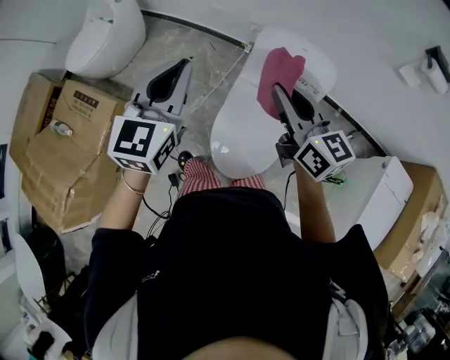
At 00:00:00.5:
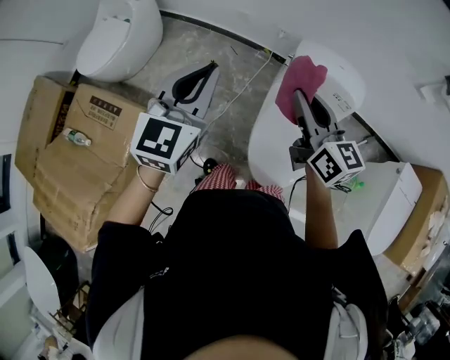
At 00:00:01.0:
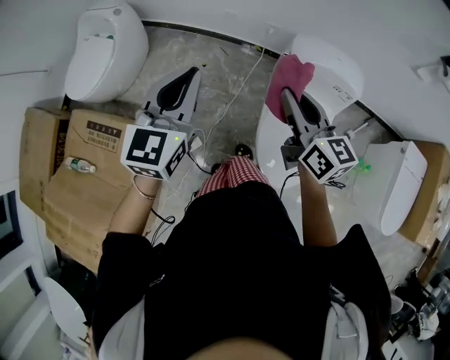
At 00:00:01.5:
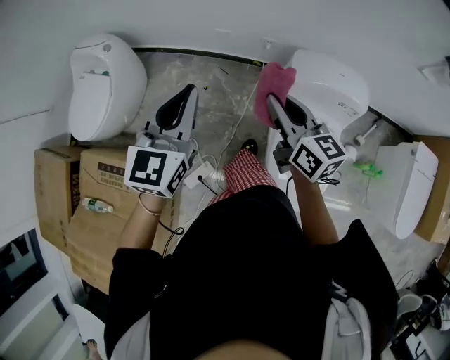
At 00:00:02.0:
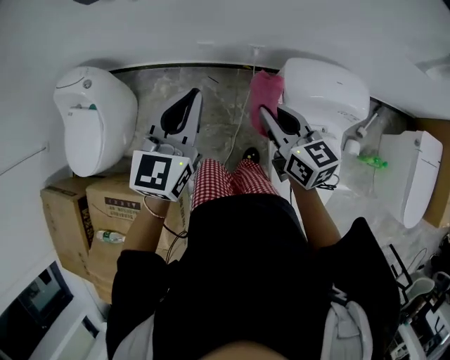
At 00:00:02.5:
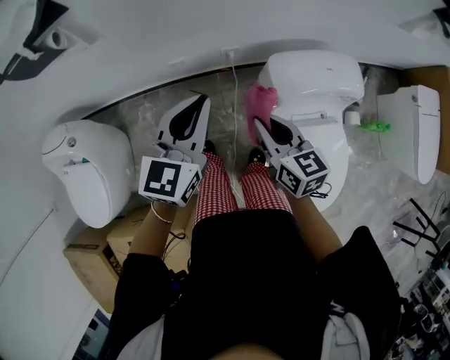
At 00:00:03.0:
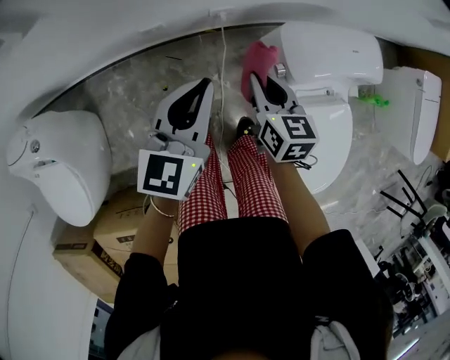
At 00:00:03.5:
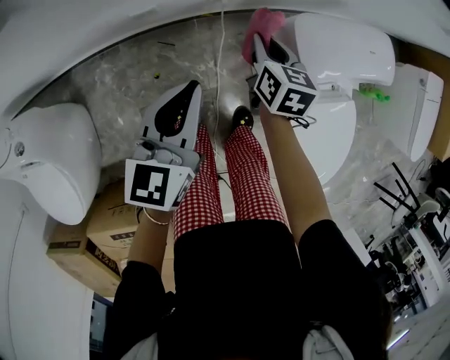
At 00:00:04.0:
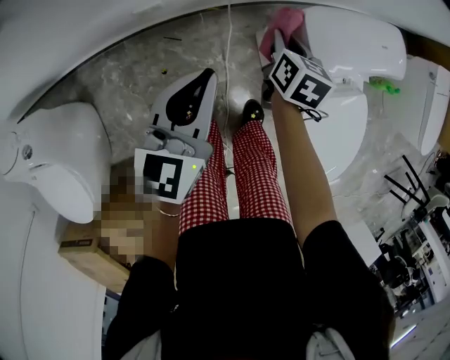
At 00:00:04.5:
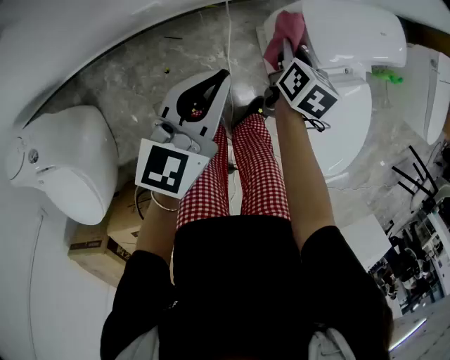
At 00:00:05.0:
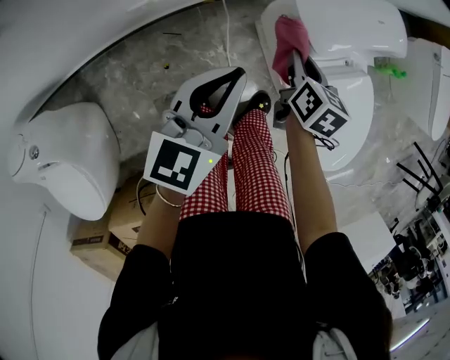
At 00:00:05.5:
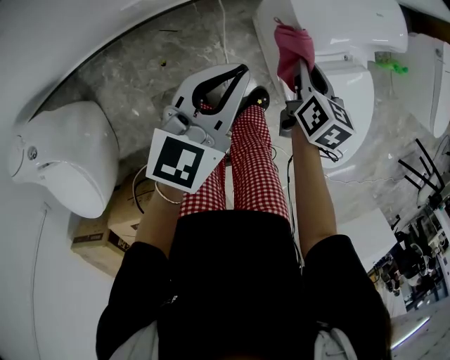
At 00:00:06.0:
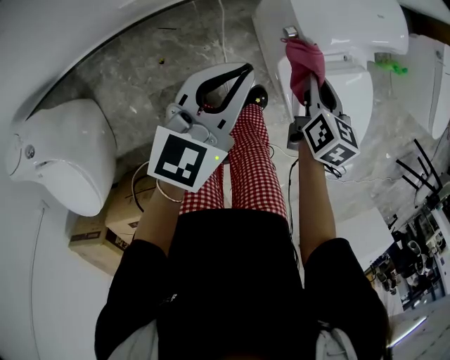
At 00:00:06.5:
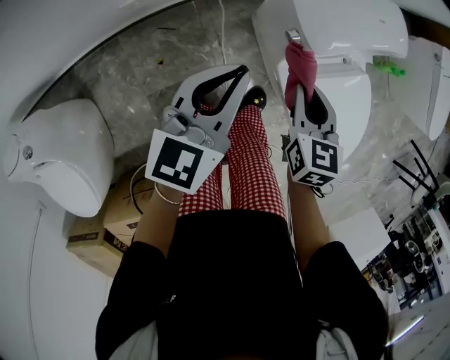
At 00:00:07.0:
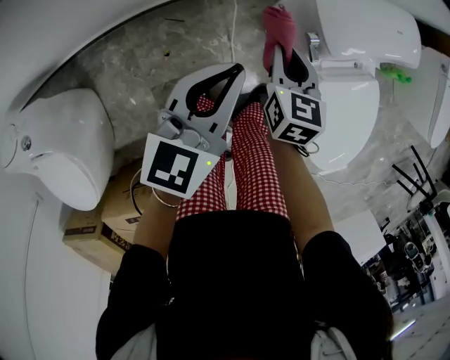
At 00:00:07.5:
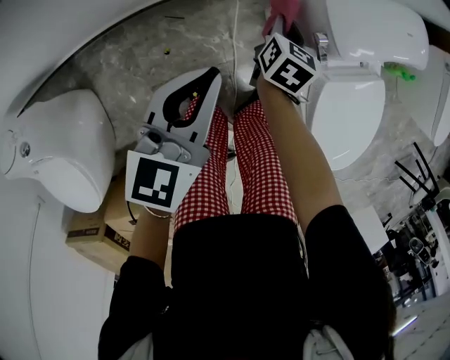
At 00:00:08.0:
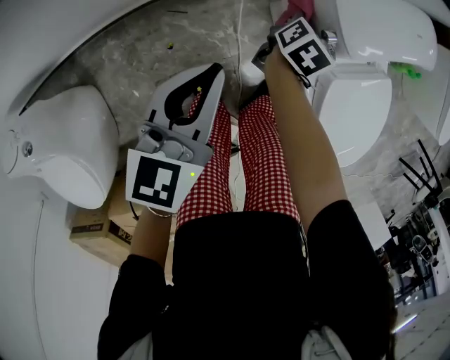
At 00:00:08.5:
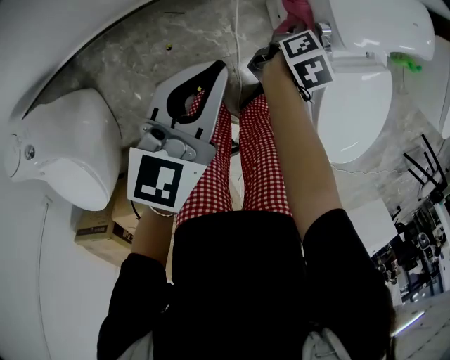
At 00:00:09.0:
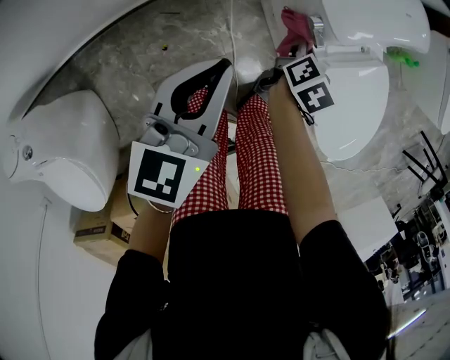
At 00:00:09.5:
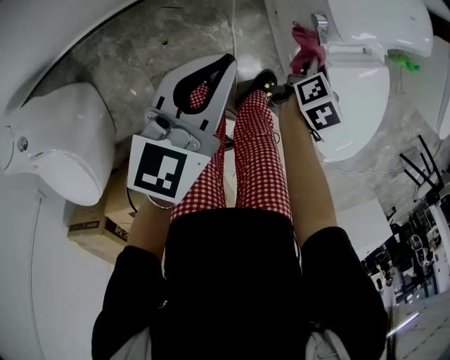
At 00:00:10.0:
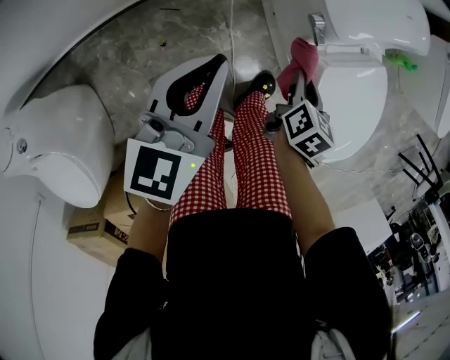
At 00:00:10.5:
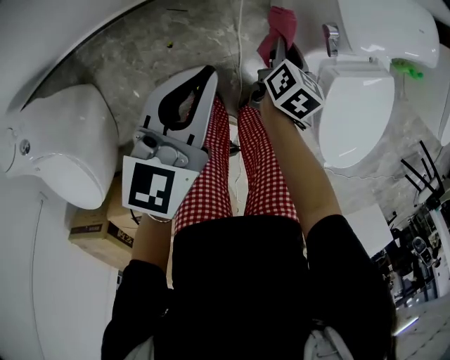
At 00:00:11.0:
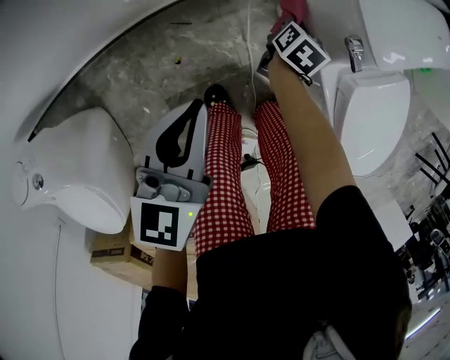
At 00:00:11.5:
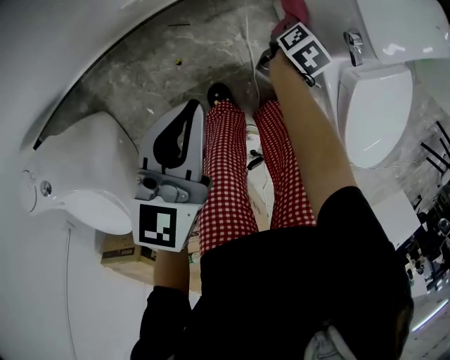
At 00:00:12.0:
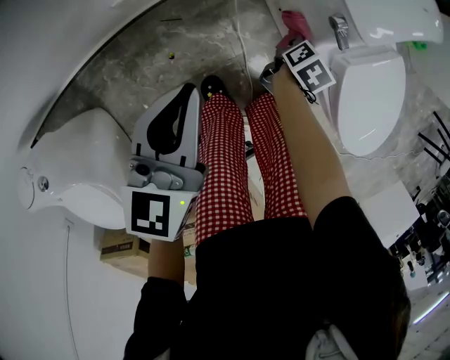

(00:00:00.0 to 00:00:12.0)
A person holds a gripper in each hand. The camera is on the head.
00:00:00.0 - 00:00:02.0: The right gripper shifts about 30 cm forward, to the left and downward, and swivels about 20 degrees. The left gripper goes roughly 30 cm forward, and changes its angle by approximately 20 degrees.
00:00:02.0 - 00:00:04.0: The two grippers go roughly 25 cm downward. The left gripper changes its angle by approximately 30 degrees. The right gripper changes its angle by approximately 60 degrees.
00:00:04.0 - 00:00:06.0: The right gripper is displaced to the right and backward by about 20 cm. Meanwhile the left gripper goes some 10 cm to the right.
00:00:06.0 - 00:00:08.0: The right gripper heads downward, to the left and forward, covering some 20 cm, and changes its angle by roughly 20 degrees, while the left gripper heads to the left, covering roughly 10 cm.
00:00:08.0 - 00:00:10.0: The right gripper goes approximately 20 cm backward and to the right.
00:00:10.0 - 00:00:12.0: The right gripper goes about 15 cm downward and forward, and turns by approximately 20 degrees, while the left gripper is displaced to the left by roughly 5 cm.

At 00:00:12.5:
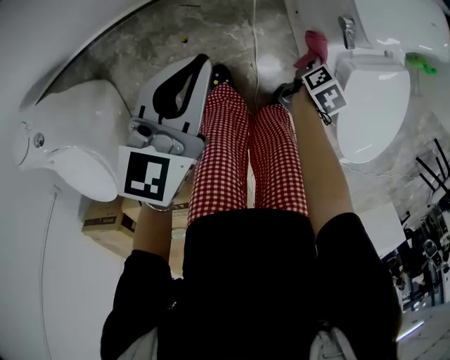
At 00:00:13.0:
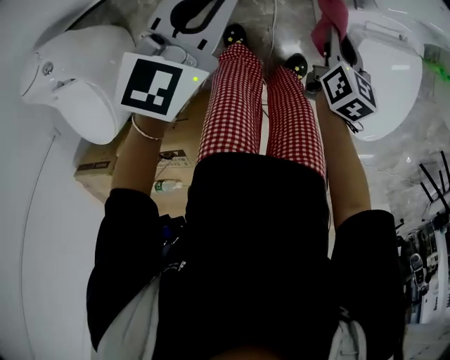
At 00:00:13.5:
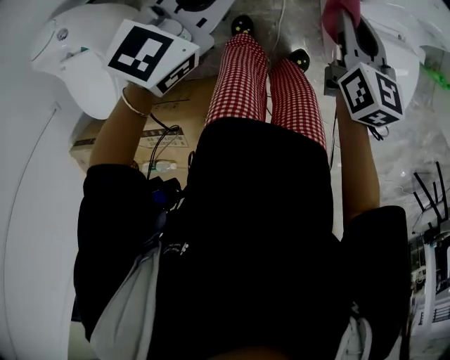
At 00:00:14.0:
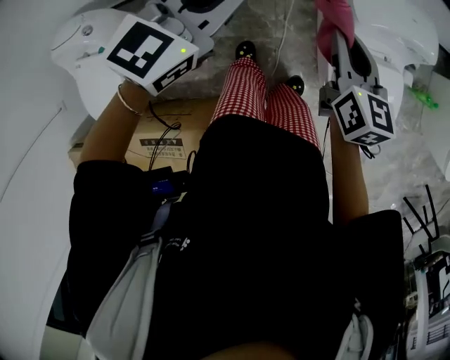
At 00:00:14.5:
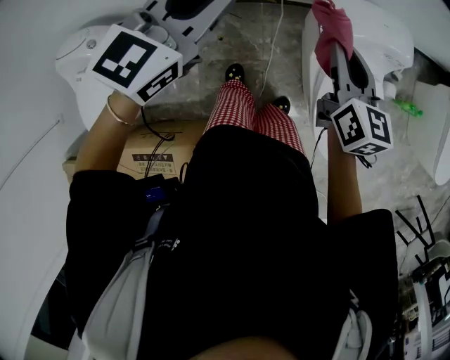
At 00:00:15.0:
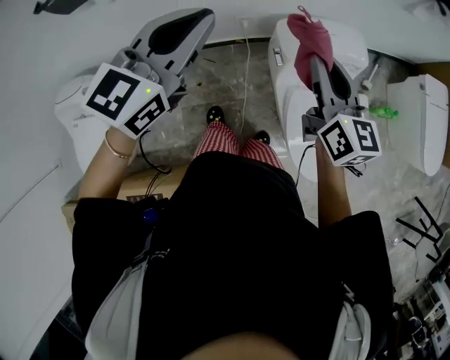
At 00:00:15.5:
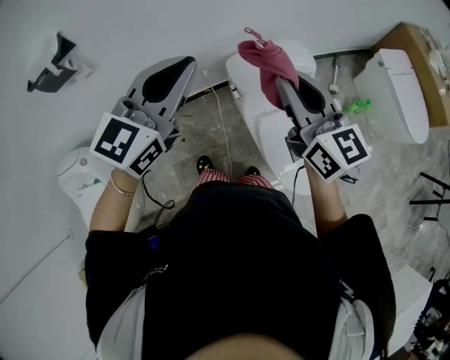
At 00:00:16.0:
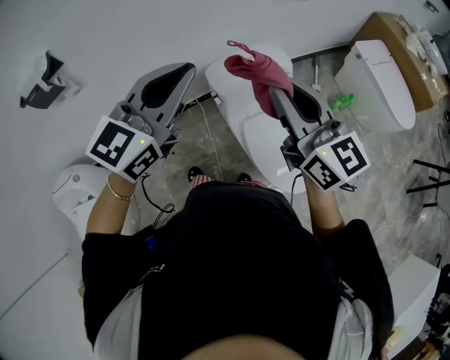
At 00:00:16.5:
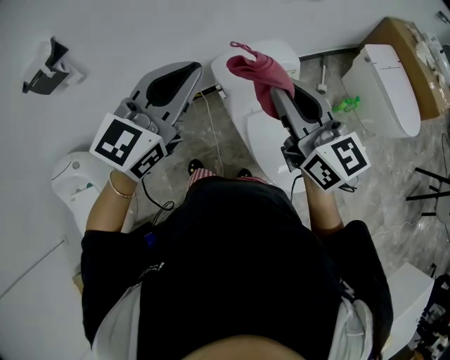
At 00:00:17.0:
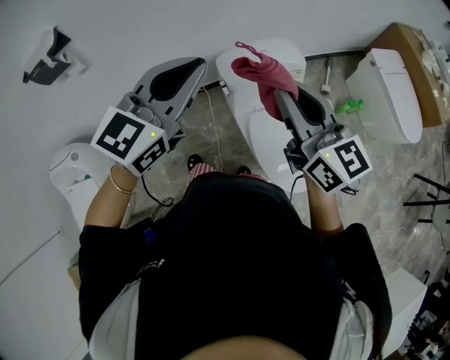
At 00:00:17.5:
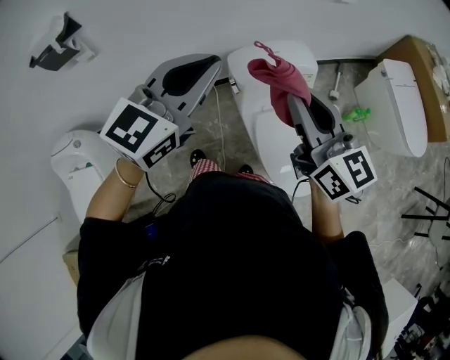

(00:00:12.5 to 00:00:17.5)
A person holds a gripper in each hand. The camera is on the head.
00:00:12.5 - 00:00:15.0: The right gripper heads upward, covering some 50 cm, and angles its fingers upward, by roughly 50 degrees. Meanwhile the left gripper shifts roughly 35 cm upward, and rotates about 20 degrees.
00:00:15.0 - 00:00:17.5: The left gripper moves to the right, some 15 cm; the right gripper moves to the right, upward and backward, roughly 15 cm.

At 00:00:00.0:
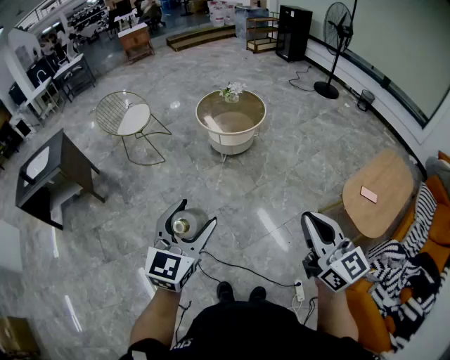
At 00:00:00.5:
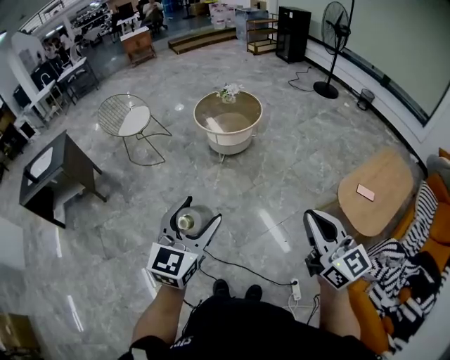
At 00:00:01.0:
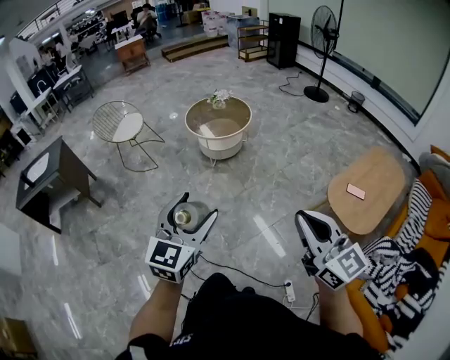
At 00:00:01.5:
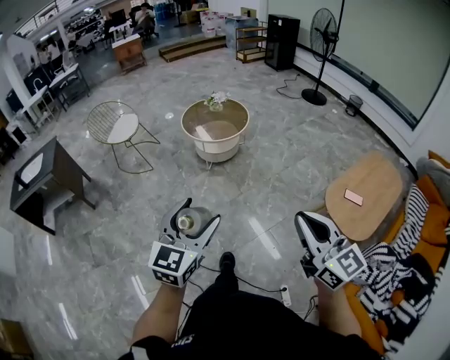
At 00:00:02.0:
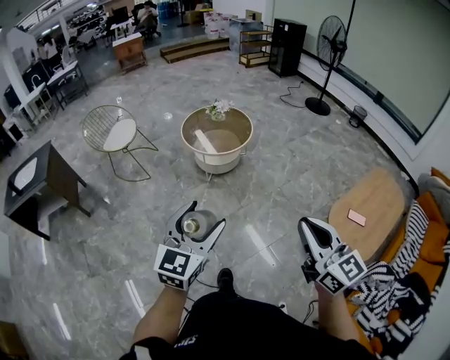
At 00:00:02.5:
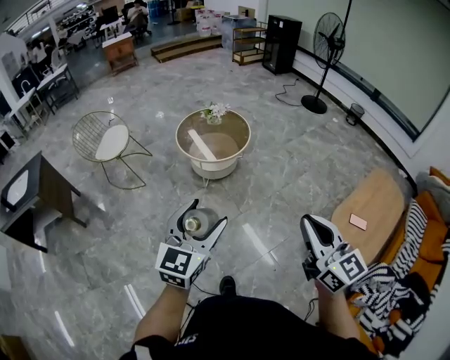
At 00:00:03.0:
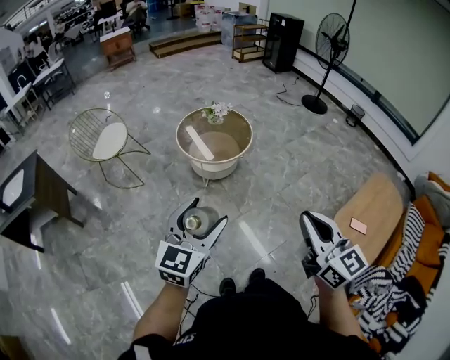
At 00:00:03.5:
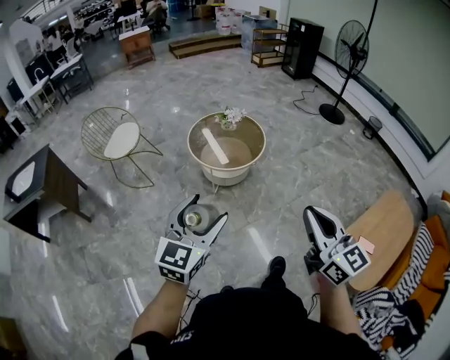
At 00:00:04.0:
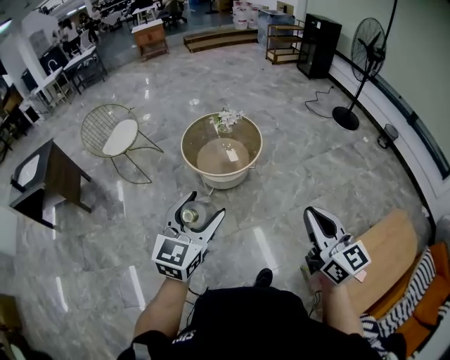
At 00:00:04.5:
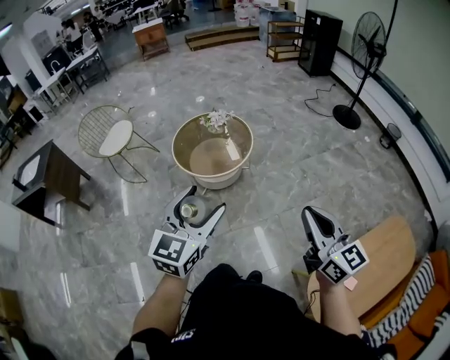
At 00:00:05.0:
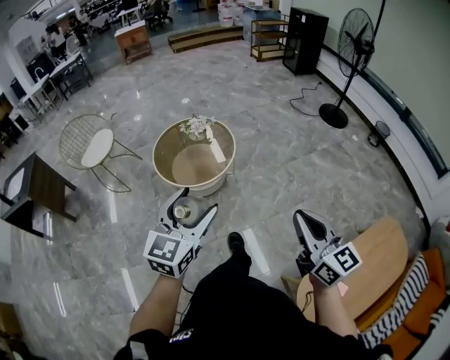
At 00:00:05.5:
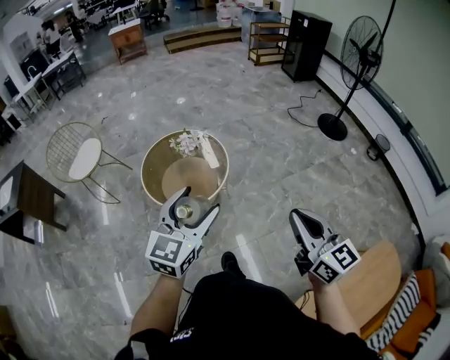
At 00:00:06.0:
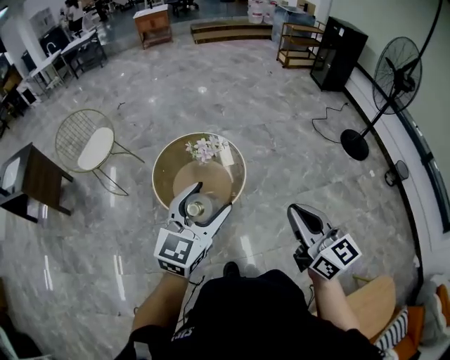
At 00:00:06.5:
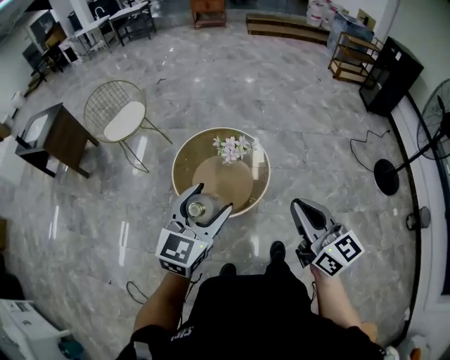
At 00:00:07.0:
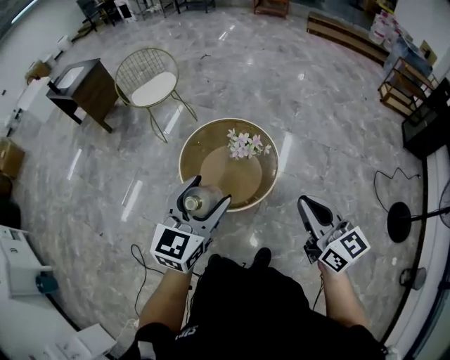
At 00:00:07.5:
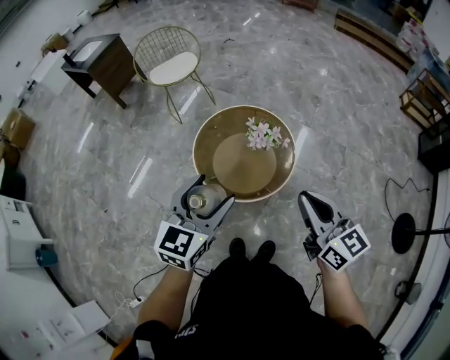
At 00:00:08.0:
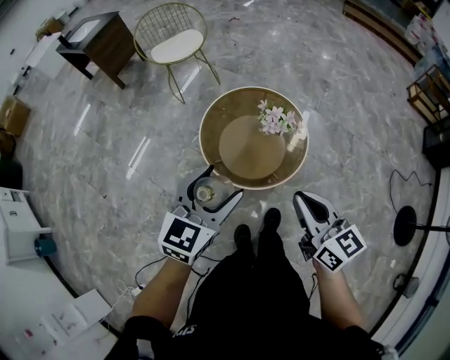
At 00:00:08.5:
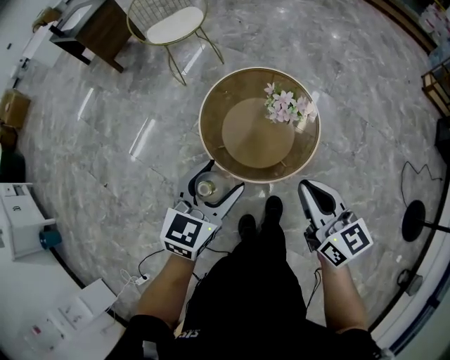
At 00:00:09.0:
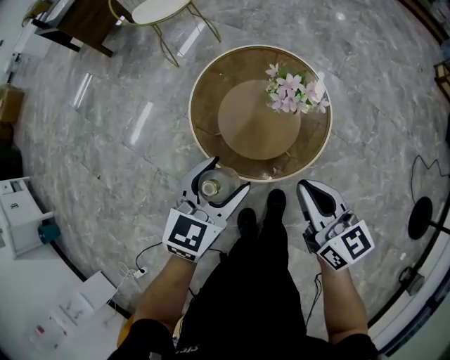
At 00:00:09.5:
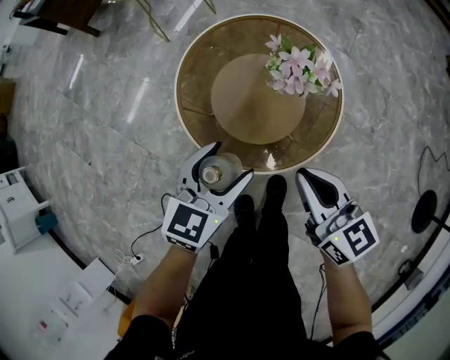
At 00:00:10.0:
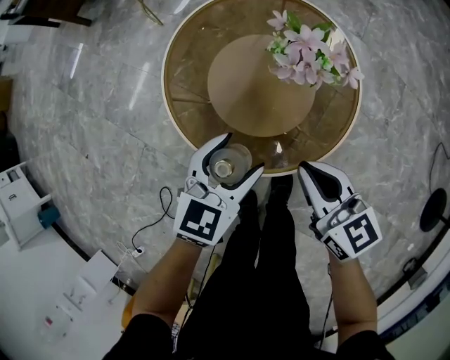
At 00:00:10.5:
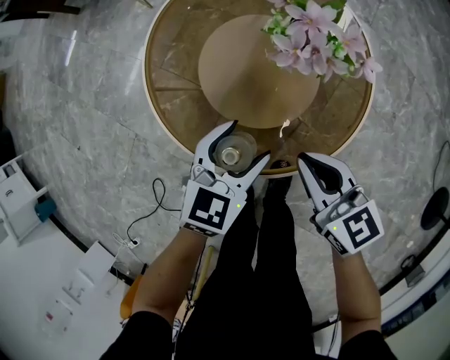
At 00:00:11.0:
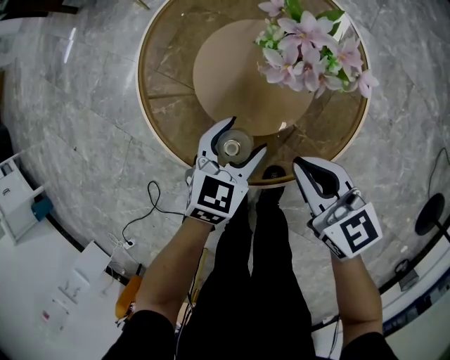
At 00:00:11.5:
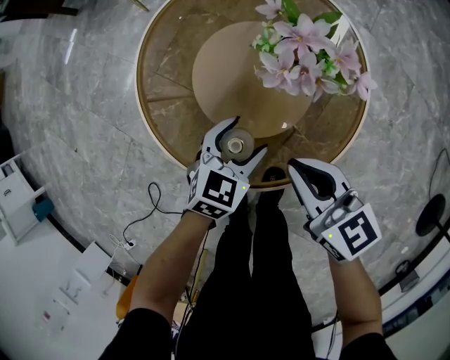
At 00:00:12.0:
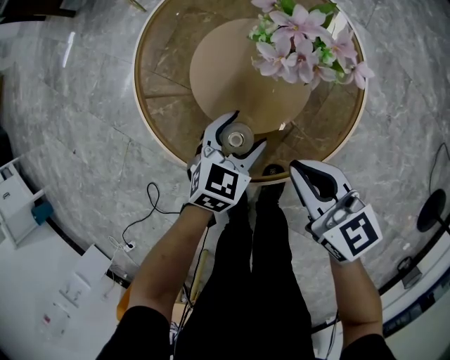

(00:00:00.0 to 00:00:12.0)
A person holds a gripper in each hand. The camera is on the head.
00:00:00.0 - 00:00:02.0: Both grippers travel together to the right and forward, approximately 15 cm.
00:00:02.0 - 00:00:04.0: The grippers both shift forward and to the right by some 40 cm.
00:00:04.0 - 00:00:06.0: The pair of grippers is taken forward and to the right, some 40 cm.
00:00:06.0 - 00:00:08.0: The left gripper moves downward, roughly 10 cm, and rotates about 40 degrees. Meanwhile the right gripper changes place by approximately 25 cm, and swivels about 40 degrees.
00:00:08.0 - 00:00:10.0: Both grippers travel together downward, about 40 cm.
00:00:10.0 - 00:00:12.0: The left gripper is displaced downward by roughly 15 cm. Meanwhile the right gripper moves downward, roughly 5 cm.
